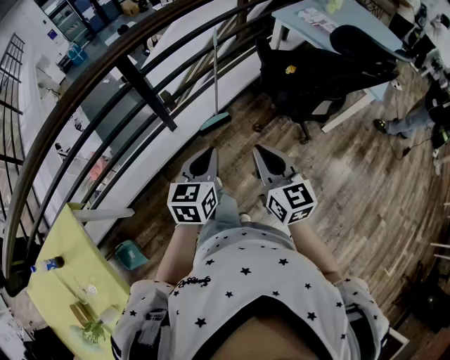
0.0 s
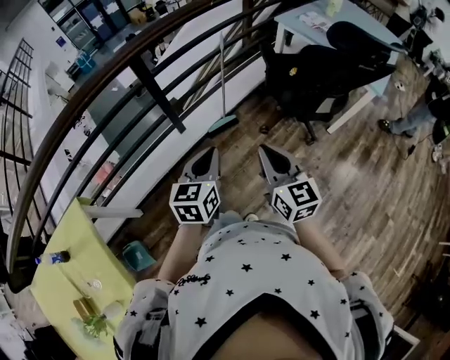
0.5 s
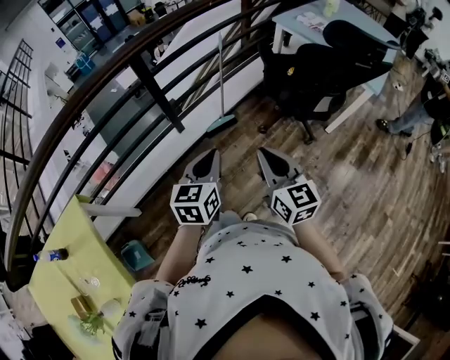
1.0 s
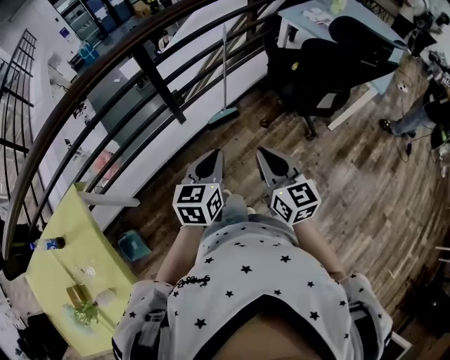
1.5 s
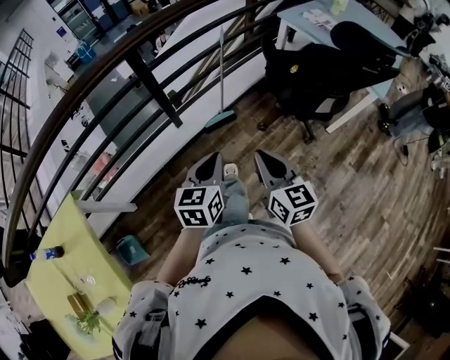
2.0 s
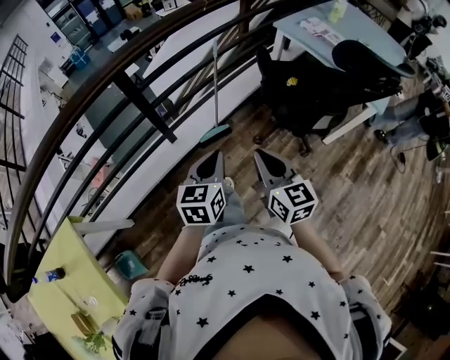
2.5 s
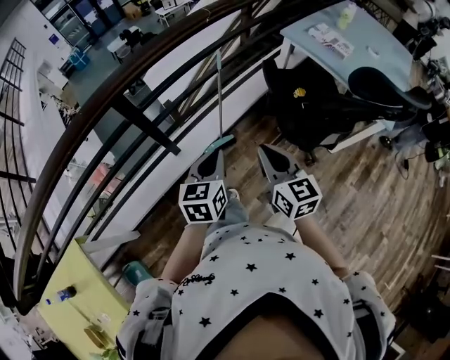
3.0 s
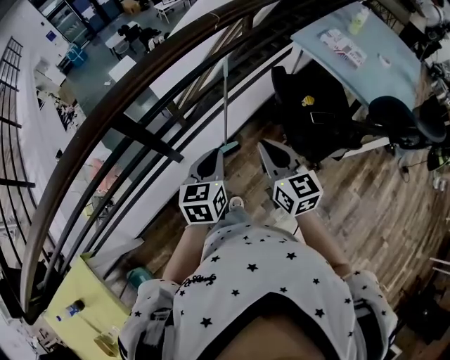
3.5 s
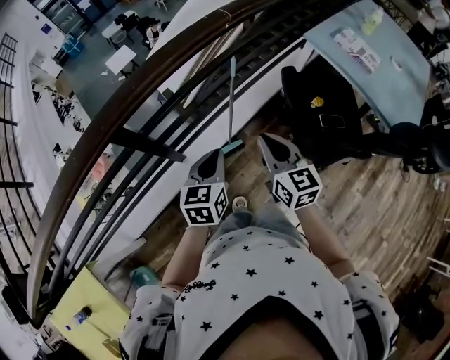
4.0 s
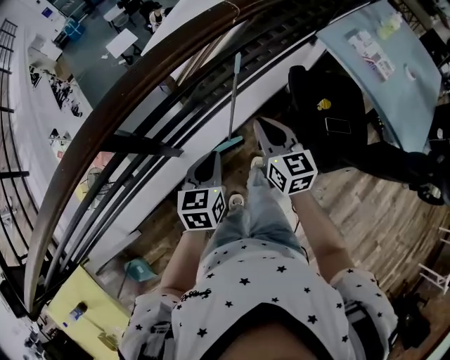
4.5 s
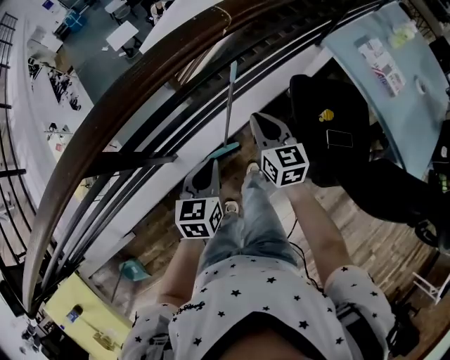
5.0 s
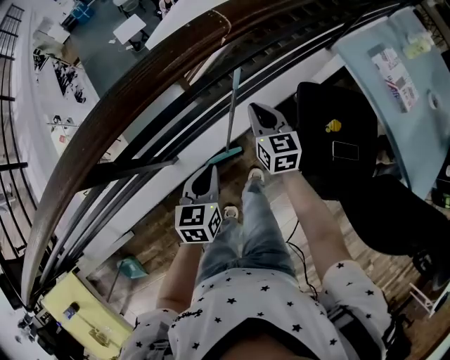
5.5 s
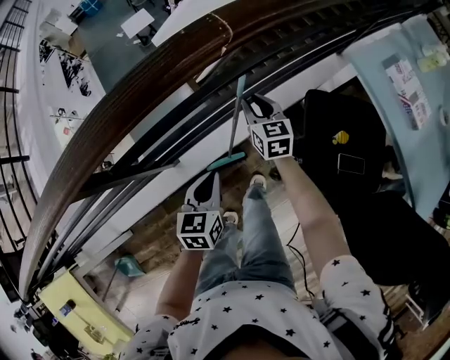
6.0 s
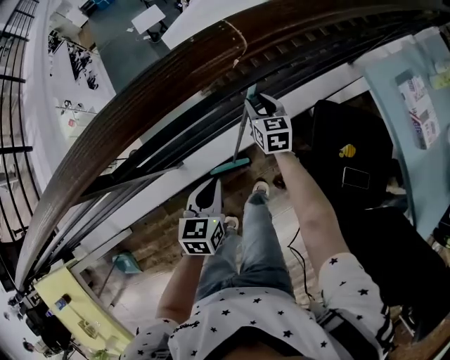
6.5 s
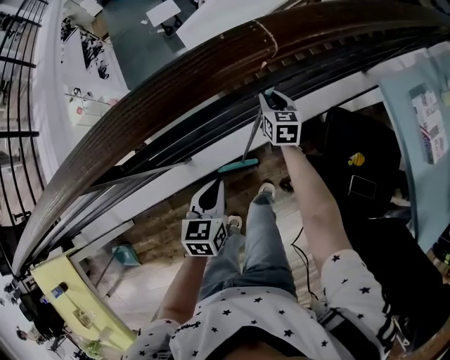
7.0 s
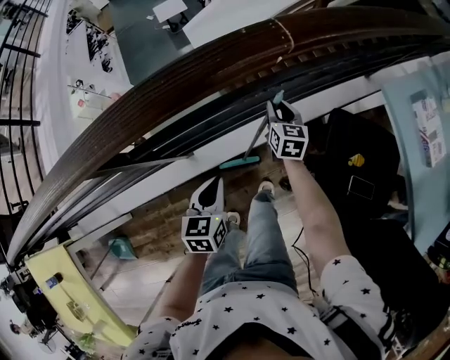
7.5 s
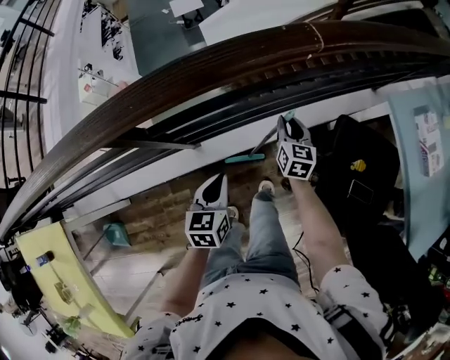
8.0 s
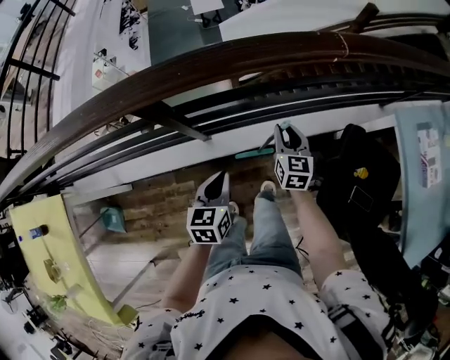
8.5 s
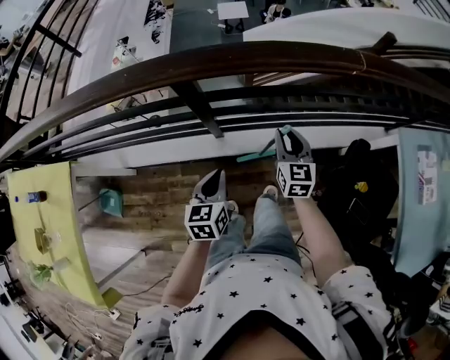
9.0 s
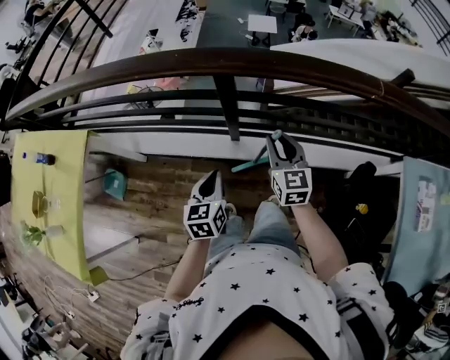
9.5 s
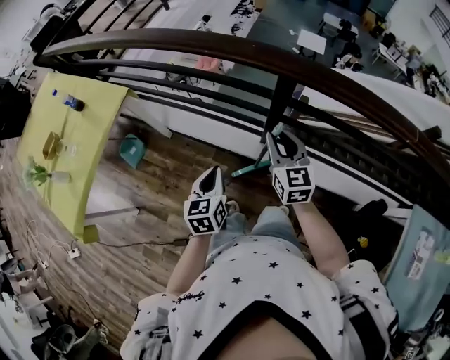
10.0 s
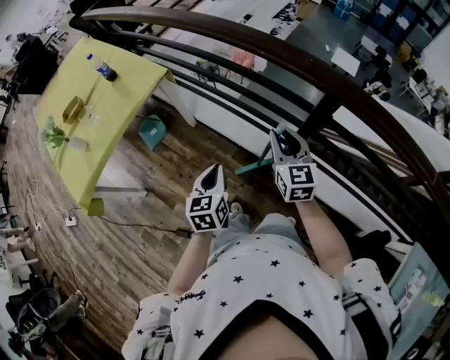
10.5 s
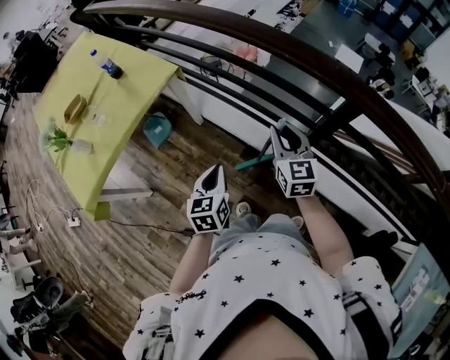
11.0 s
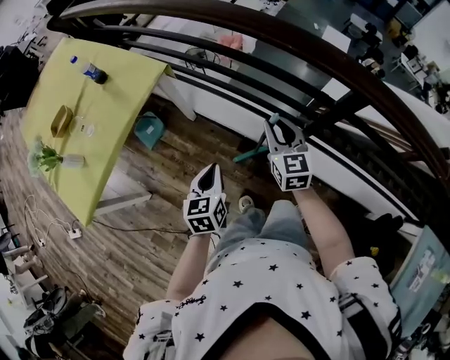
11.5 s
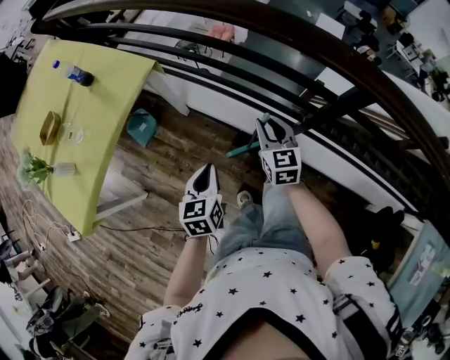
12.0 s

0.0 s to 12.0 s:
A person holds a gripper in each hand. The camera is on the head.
2.0 to 4.0 s: Both grippers move forward, some 40 cm.
4.0 to 6.0 s: The right gripper goes roughly 40 cm forward and downward, and opens up. Meanwhile the left gripper heads forward and downward, covering roughly 20 cm.
6.0 to 8.0 s: The left gripper travels to the left by roughly 5 cm.
8.0 to 10.0 s: The right gripper moves roughly 50 cm, and turns by approximately 60 degrees. The left gripper changes place by roughly 35 cm, and rotates some 50 degrees.
10.0 to 12.0 s: The left gripper heads to the left, covering roughly 20 cm. Meanwhile the right gripper heads to the left, forward and downward, covering about 25 cm.

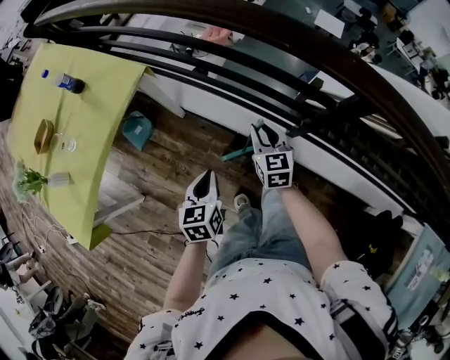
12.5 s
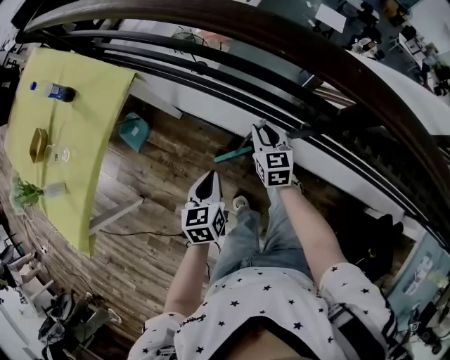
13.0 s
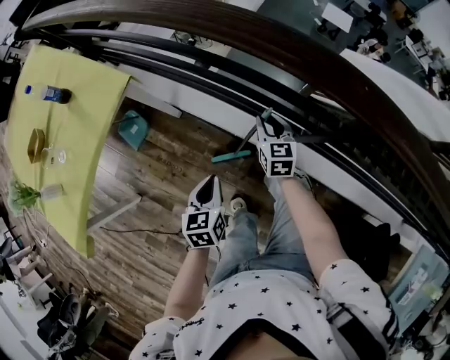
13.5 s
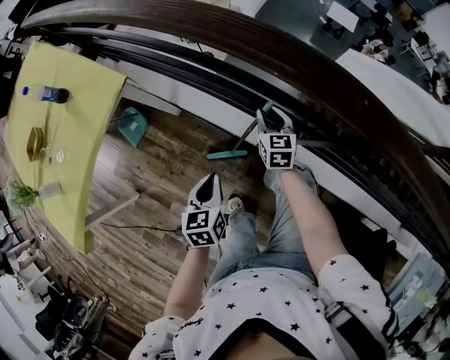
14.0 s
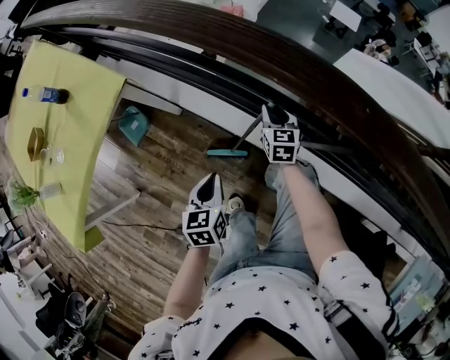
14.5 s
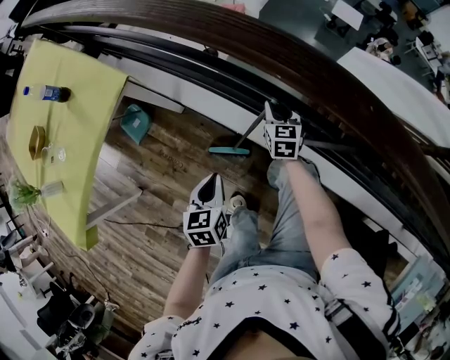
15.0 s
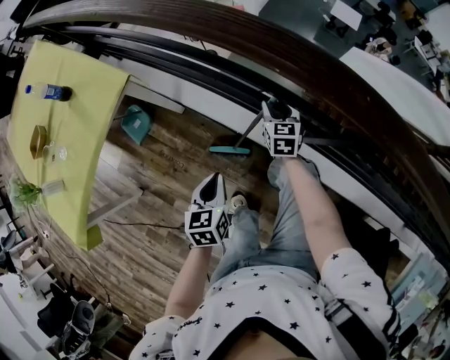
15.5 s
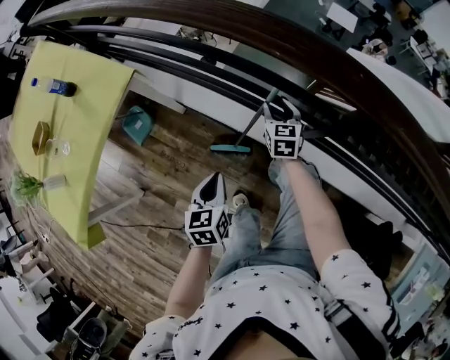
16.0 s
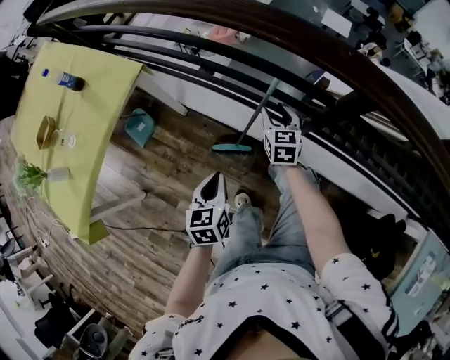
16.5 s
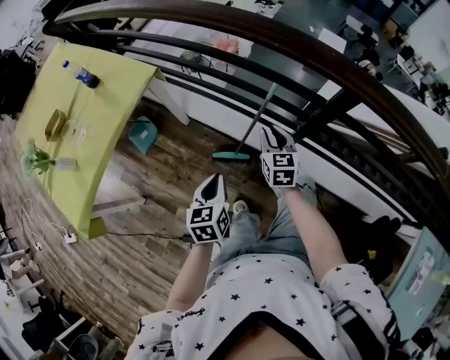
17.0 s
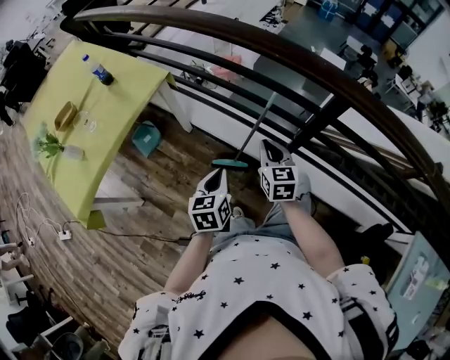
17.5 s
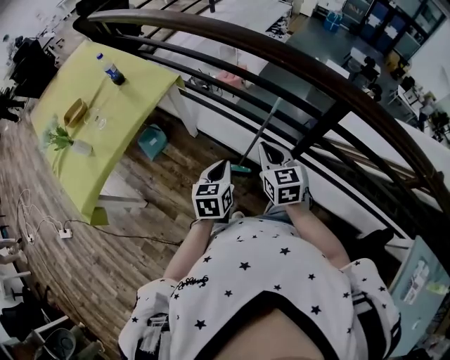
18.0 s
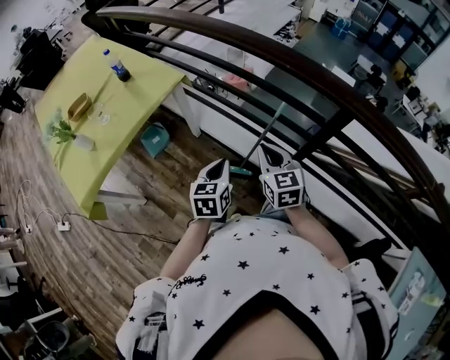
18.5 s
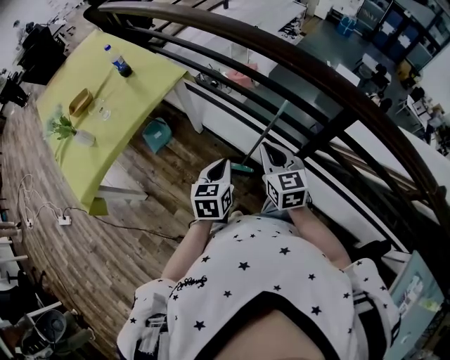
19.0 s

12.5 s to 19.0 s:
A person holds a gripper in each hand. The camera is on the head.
12.5 to 14.5 s: The right gripper travels forward, downward and to the right by some 20 cm. Meanwhile the left gripper shifts about 10 cm forward and to the right.
14.5 to 17.0 s: The left gripper is displaced backward and upward by approximately 15 cm. The right gripper heads backward and upward, covering roughly 25 cm.
17.0 to 19.0 s: The right gripper heads upward, backward and to the left, covering some 15 cm, and closes. Meanwhile the left gripper travels upward by about 5 cm.

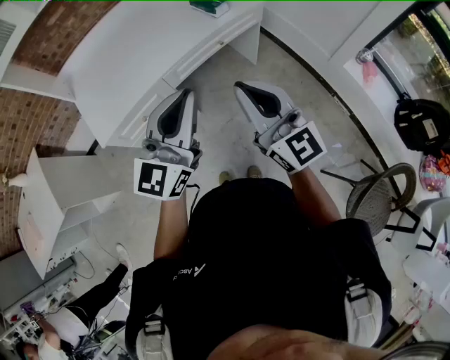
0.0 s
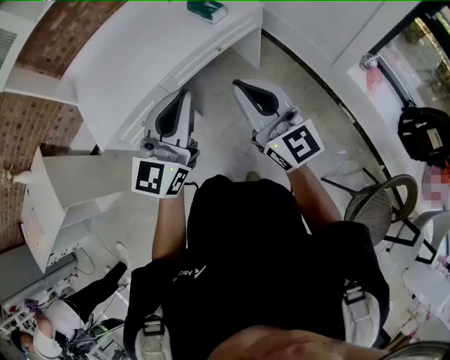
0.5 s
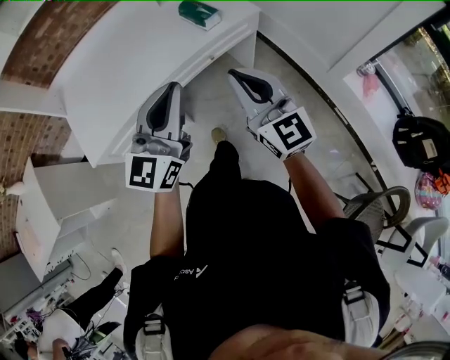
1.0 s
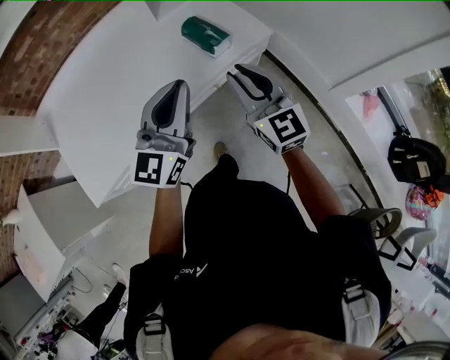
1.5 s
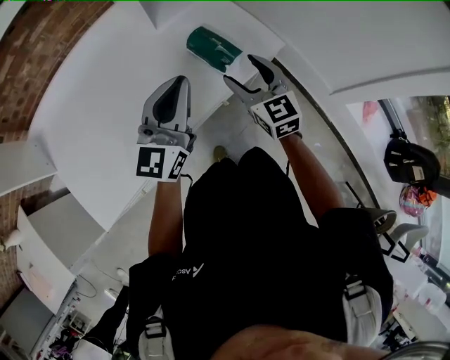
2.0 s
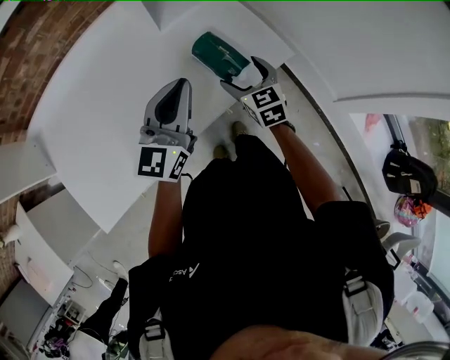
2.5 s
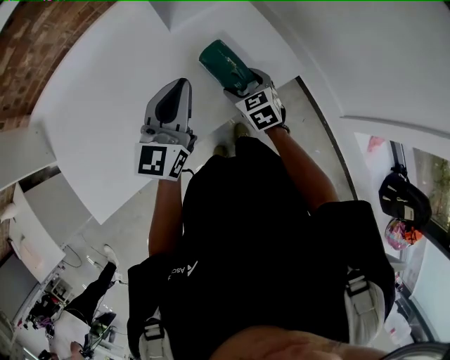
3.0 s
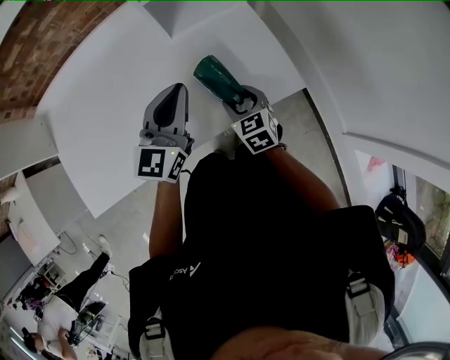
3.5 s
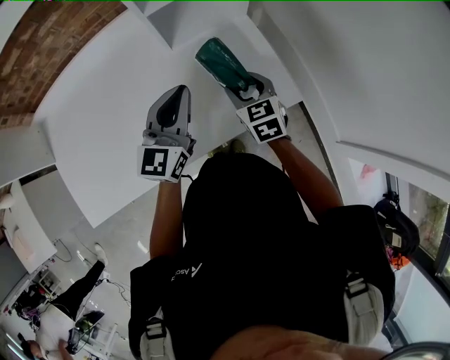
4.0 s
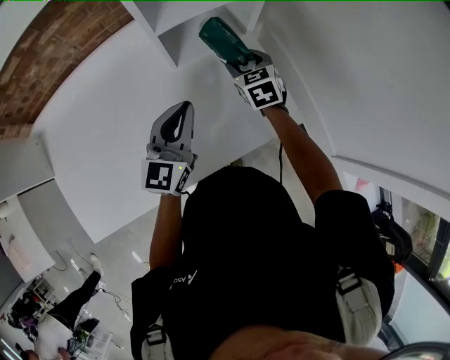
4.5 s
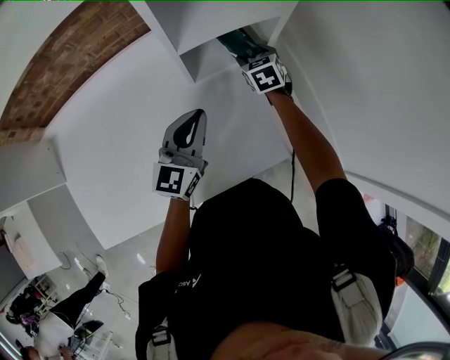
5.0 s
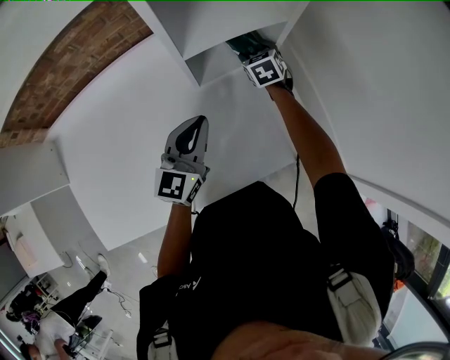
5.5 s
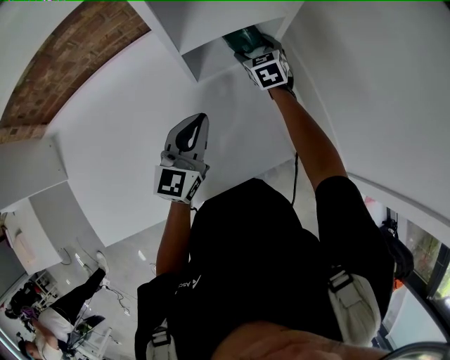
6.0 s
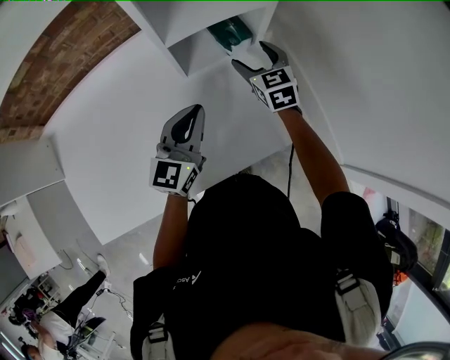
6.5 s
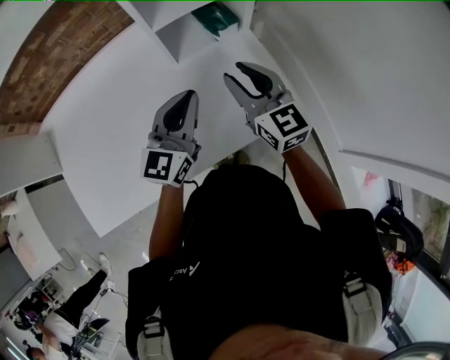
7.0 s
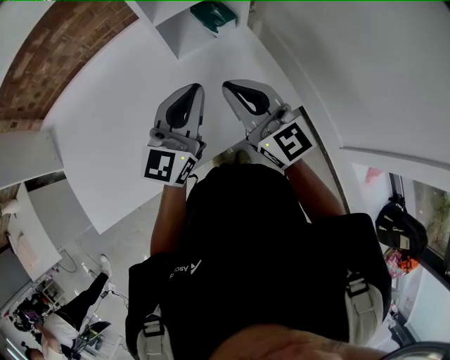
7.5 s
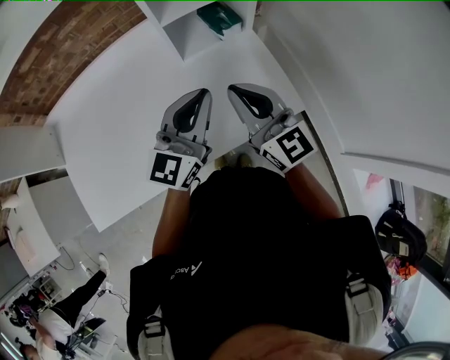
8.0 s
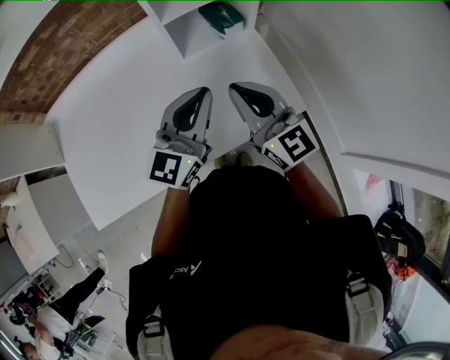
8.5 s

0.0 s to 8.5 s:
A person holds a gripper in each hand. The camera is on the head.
0.0 to 2.0 s: The pair of grippers is taken forward, about 50 cm. The right gripper rotates roughly 30 degrees, and opens its fingers.
2.0 to 4.0 s: The right gripper is displaced forward and downward by about 20 cm, and turns by approximately 20 degrees, while the left gripper travels forward by approximately 15 cm.
4.0 to 6.5 s: The left gripper shifts some 5 cm forward, while the right gripper heads forward, covering about 20 cm.
6.5 to 8.5 s: The right gripper goes approximately 25 cm backward and upward, points its fingers some 30 degrees further upward, and closes up. Meanwhile the left gripper shifts approximately 10 cm backward and upward.
